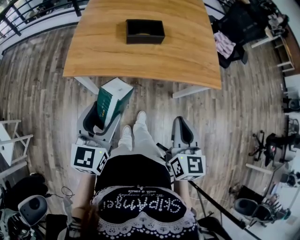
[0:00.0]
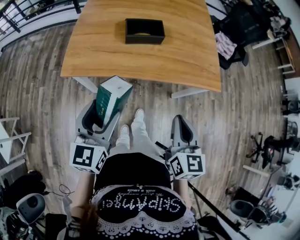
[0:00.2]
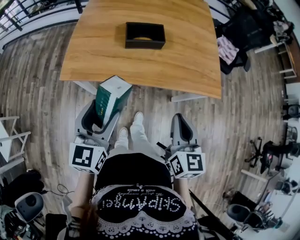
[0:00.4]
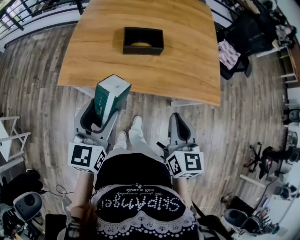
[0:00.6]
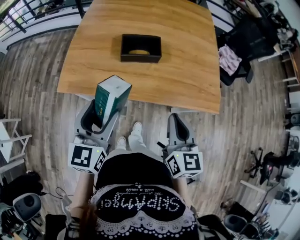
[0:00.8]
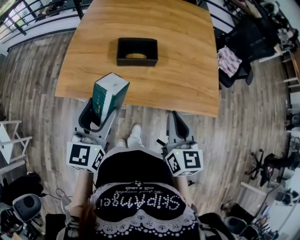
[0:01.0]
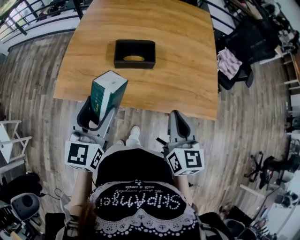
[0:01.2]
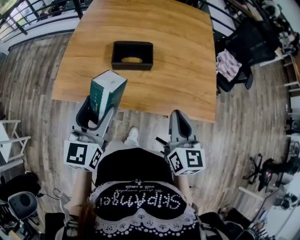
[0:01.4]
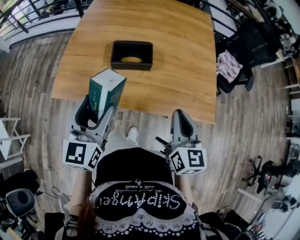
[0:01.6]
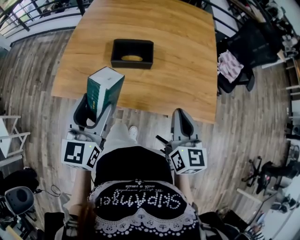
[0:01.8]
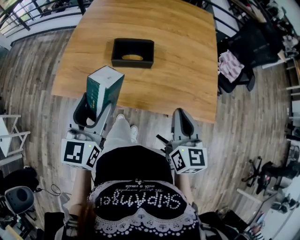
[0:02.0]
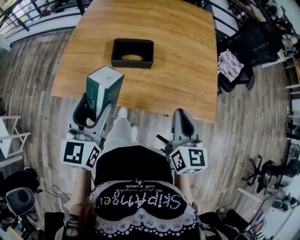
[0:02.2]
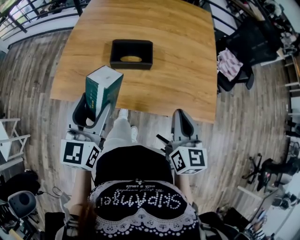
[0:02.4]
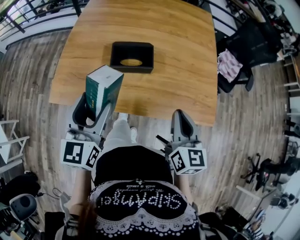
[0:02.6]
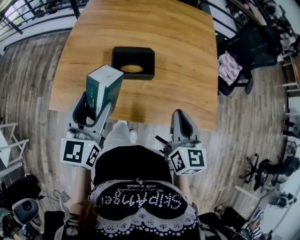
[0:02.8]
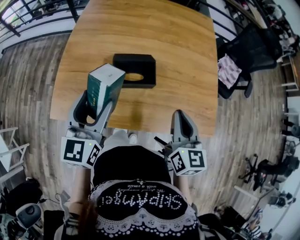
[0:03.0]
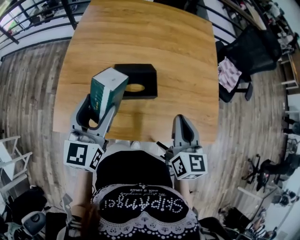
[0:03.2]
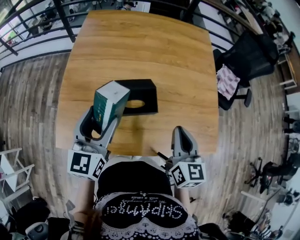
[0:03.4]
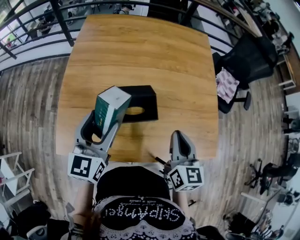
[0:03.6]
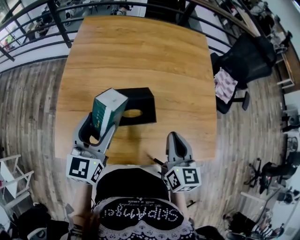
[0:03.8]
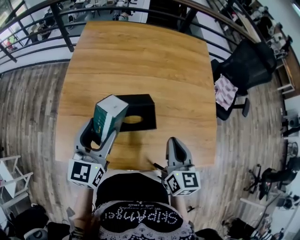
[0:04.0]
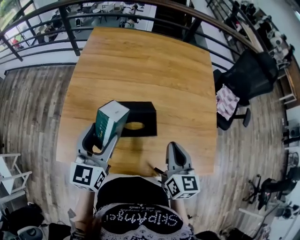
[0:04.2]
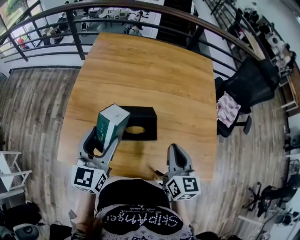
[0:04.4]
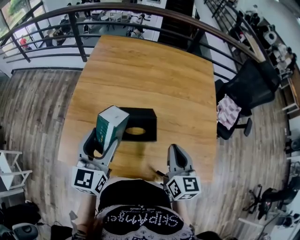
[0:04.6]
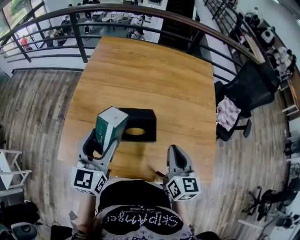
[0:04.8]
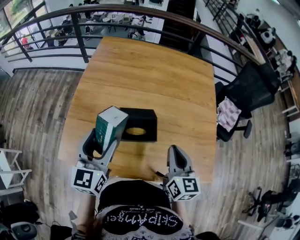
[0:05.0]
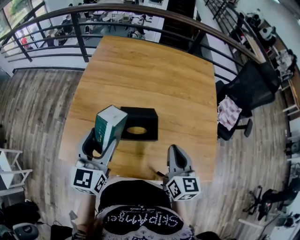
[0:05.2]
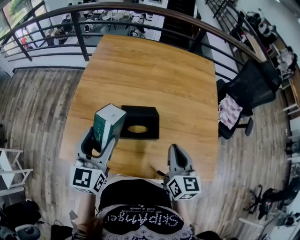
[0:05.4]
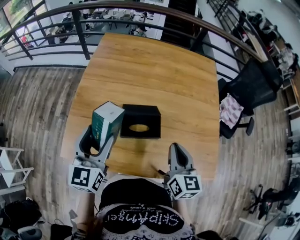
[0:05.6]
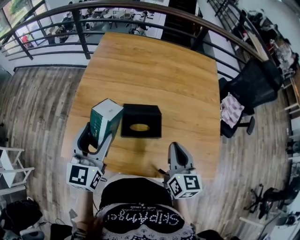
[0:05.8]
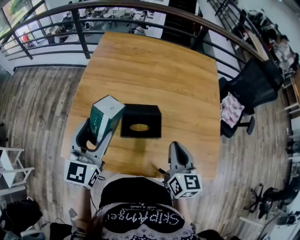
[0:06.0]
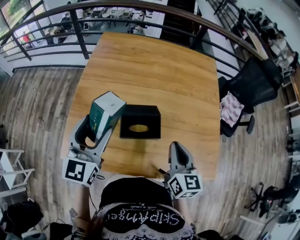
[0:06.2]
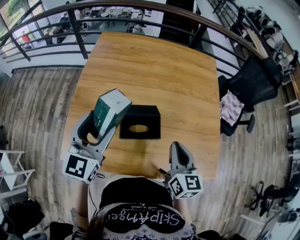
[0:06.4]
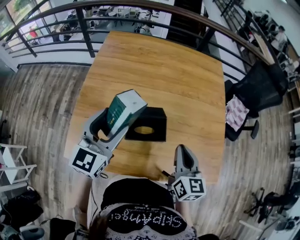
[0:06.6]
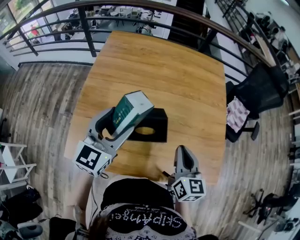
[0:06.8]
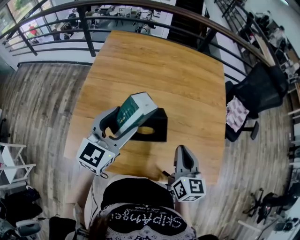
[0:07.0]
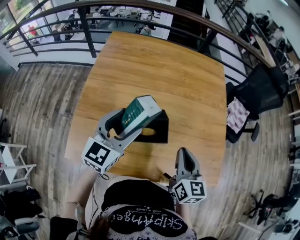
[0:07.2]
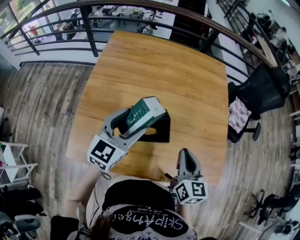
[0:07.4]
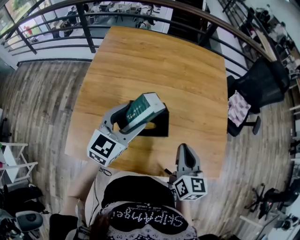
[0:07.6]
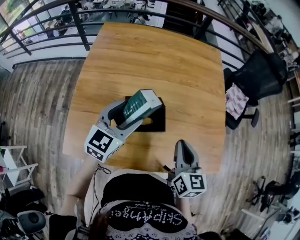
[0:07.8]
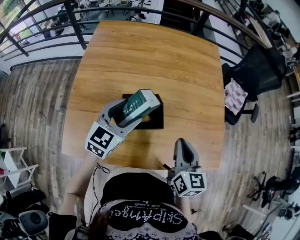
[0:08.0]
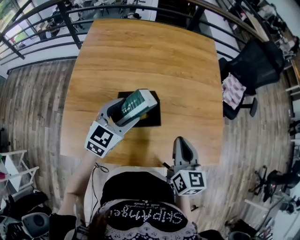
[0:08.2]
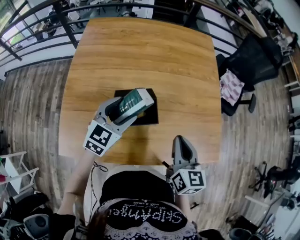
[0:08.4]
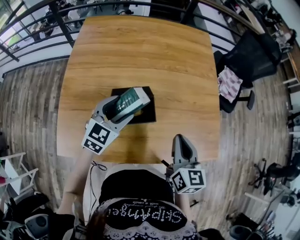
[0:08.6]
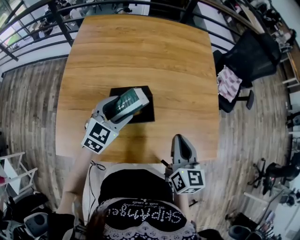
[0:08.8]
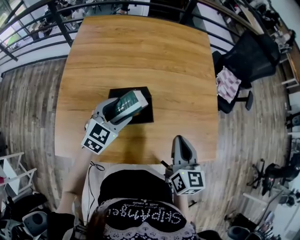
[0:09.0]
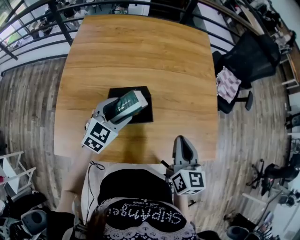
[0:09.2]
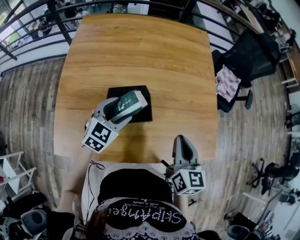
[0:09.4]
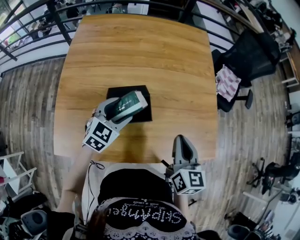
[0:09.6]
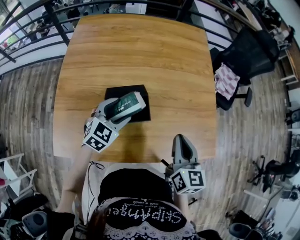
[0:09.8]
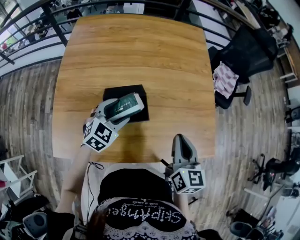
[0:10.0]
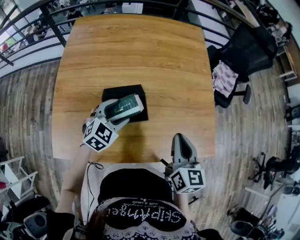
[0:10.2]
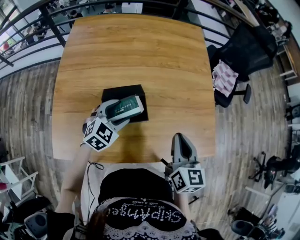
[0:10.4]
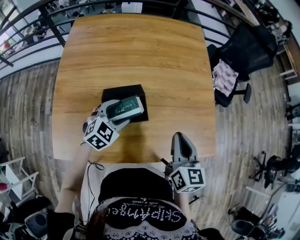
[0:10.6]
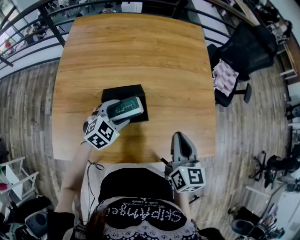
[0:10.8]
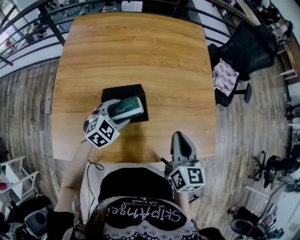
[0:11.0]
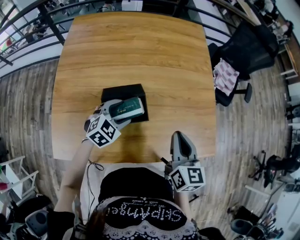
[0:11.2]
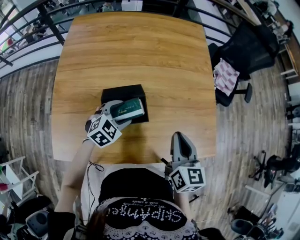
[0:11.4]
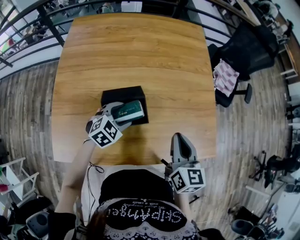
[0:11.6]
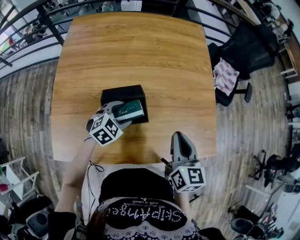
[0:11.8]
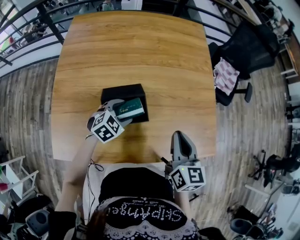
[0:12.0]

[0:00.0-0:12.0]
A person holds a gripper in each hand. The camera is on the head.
0:00.0 to 0:01.6: Both grippers travel together forward, approximately 20 cm.
0:01.6 to 0:03.0: Both grippers travel together forward, roughly 10 cm.
0:03.0 to 0:04.4: The grippers both shift forward by roughly 10 cm.
0:04.4 to 0:06.0: The grippers move only a little.
0:06.0 to 0:07.6: The left gripper is displaced to the right and forward by about 10 cm, and rotates some 20 degrees.
0:07.6 to 0:09.0: The left gripper heads downward, covering roughly 10 cm. Meanwhile the right gripper shifts by about 5 cm.
0:09.0 to 0:10.4: The left gripper ends up approximately 5 cm from where it was.
0:10.4 to 0:12.0: The left gripper moves downward, roughly 5 cm.

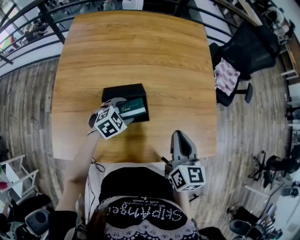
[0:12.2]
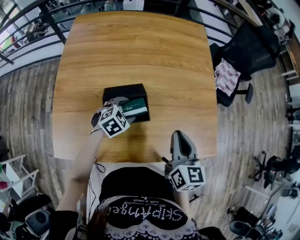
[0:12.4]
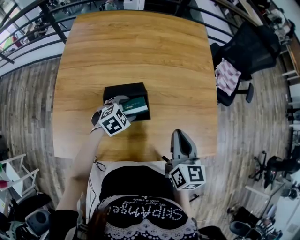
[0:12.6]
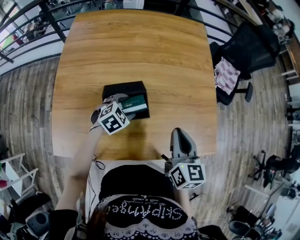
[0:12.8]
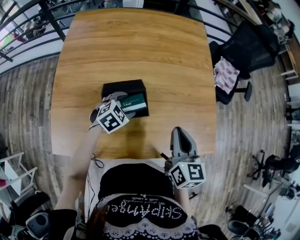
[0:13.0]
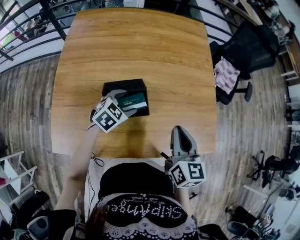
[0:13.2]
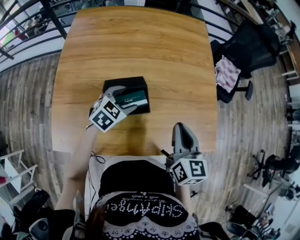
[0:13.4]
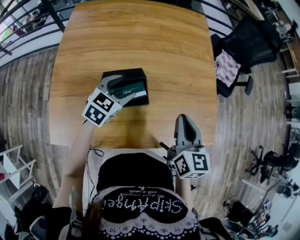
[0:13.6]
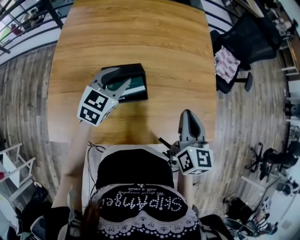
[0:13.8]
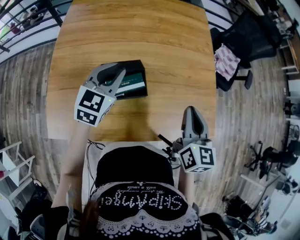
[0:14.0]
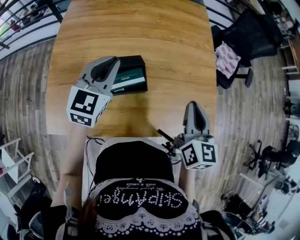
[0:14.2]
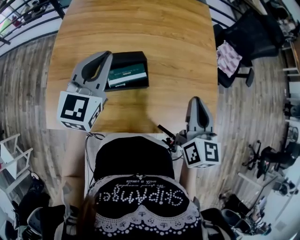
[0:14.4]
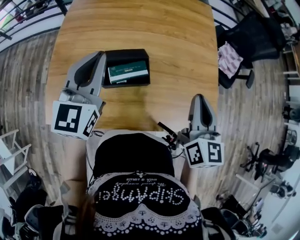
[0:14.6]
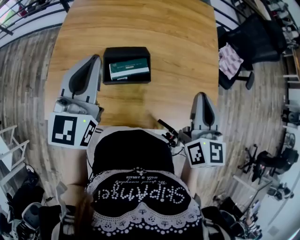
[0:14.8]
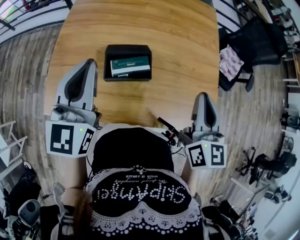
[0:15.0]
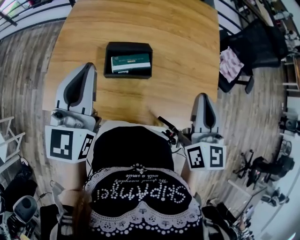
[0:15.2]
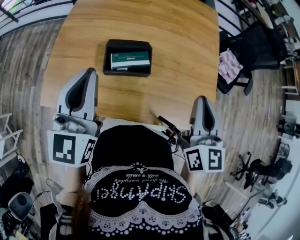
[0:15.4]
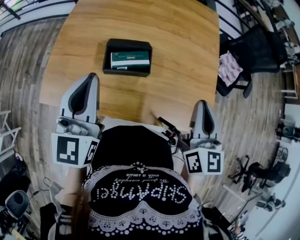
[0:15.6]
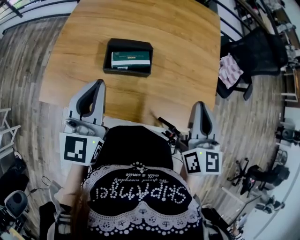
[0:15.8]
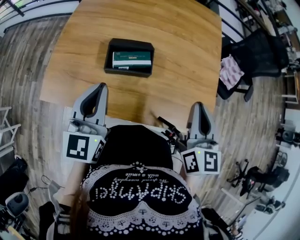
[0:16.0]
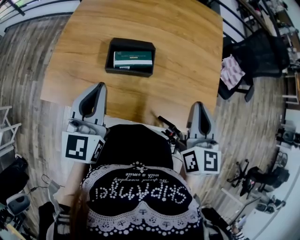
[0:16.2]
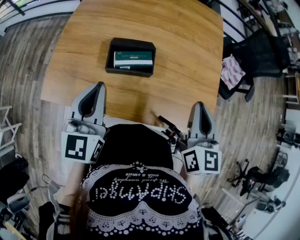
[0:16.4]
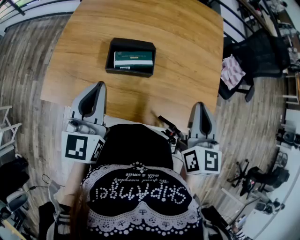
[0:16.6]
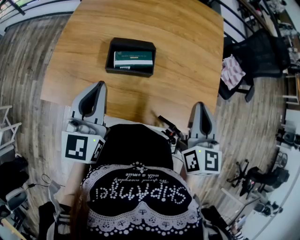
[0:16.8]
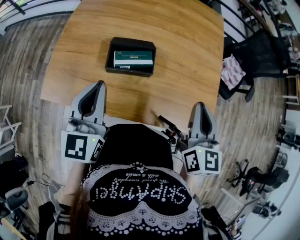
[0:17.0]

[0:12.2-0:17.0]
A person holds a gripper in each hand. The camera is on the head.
0:12.2 to 0:13.8: The left gripper is displaced upward by about 15 cm, changes its angle by some 30 degrees, and closes up.
0:13.8 to 0:15.4: The right gripper travels upward by roughly 10 cm, while the left gripper heads backward and upward, covering some 25 cm, rotates some 40 degrees, and closes.
0:15.4 to 0:17.0: The left gripper shifts approximately 5 cm downward.

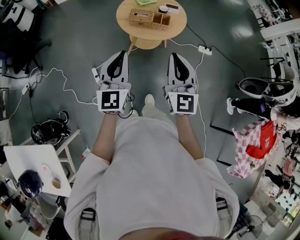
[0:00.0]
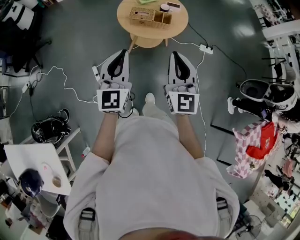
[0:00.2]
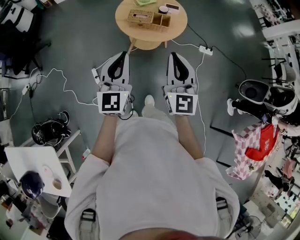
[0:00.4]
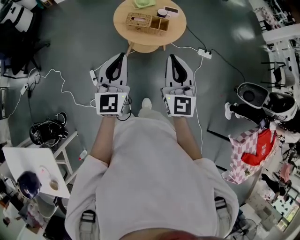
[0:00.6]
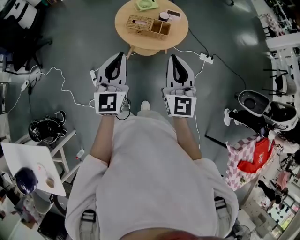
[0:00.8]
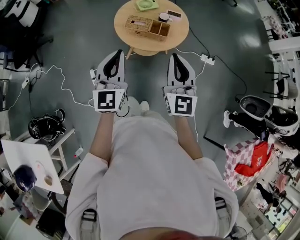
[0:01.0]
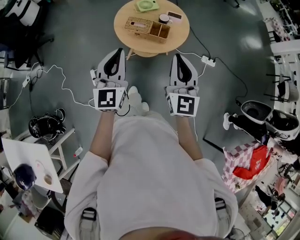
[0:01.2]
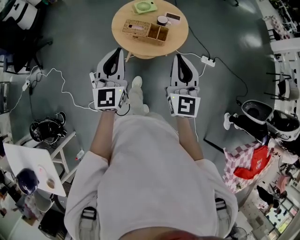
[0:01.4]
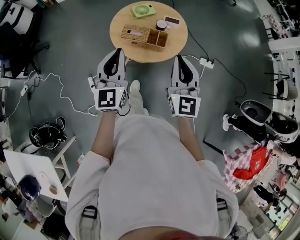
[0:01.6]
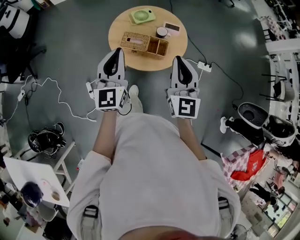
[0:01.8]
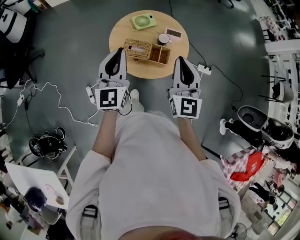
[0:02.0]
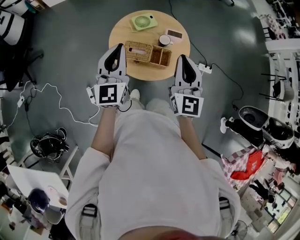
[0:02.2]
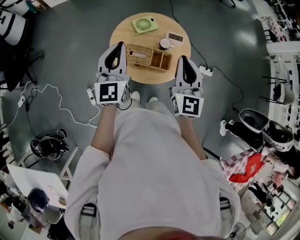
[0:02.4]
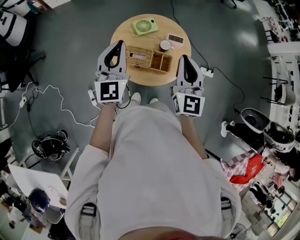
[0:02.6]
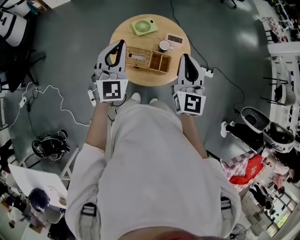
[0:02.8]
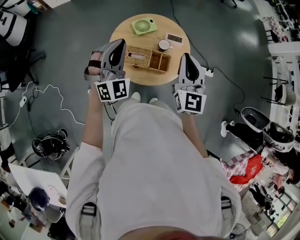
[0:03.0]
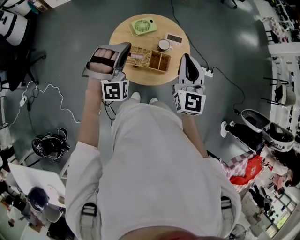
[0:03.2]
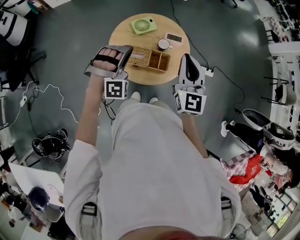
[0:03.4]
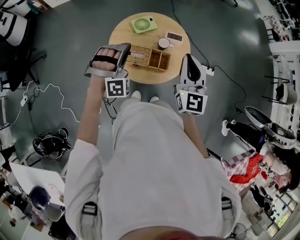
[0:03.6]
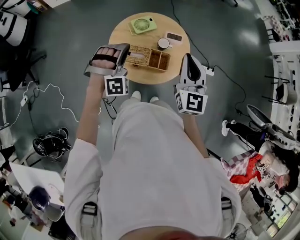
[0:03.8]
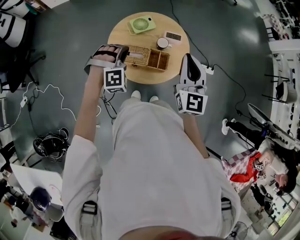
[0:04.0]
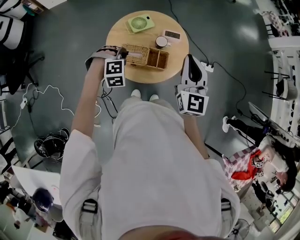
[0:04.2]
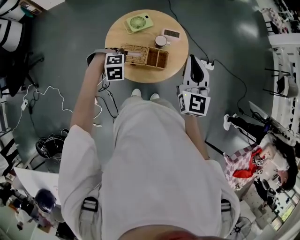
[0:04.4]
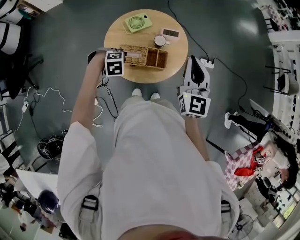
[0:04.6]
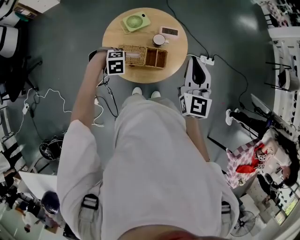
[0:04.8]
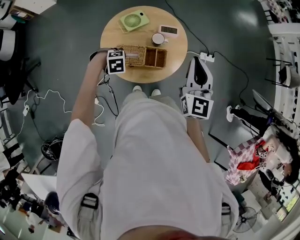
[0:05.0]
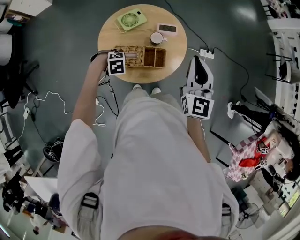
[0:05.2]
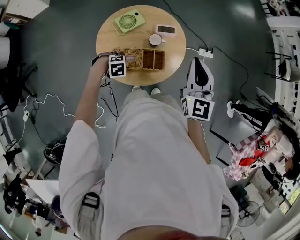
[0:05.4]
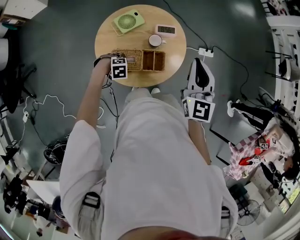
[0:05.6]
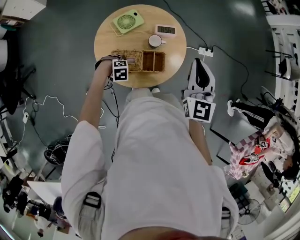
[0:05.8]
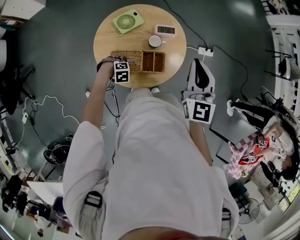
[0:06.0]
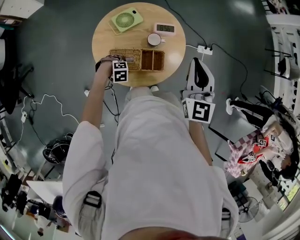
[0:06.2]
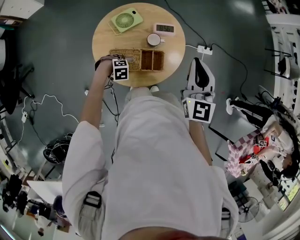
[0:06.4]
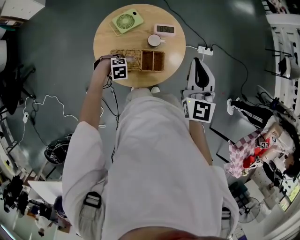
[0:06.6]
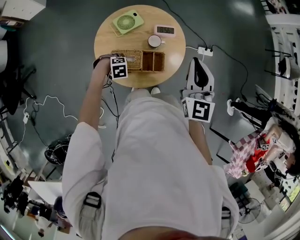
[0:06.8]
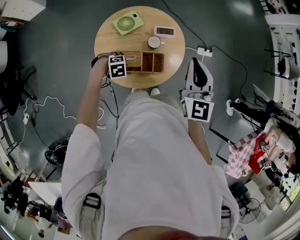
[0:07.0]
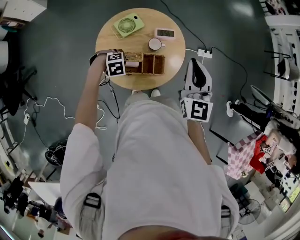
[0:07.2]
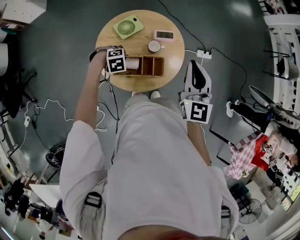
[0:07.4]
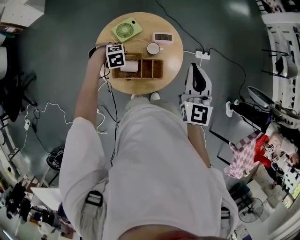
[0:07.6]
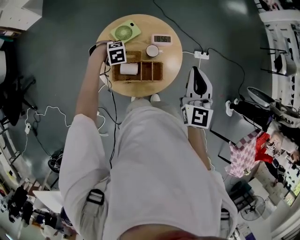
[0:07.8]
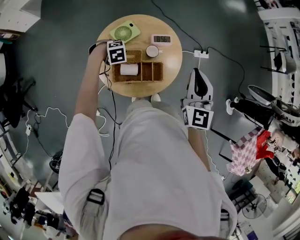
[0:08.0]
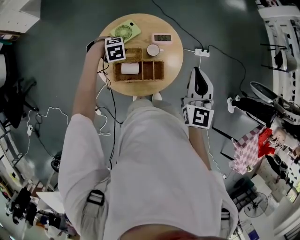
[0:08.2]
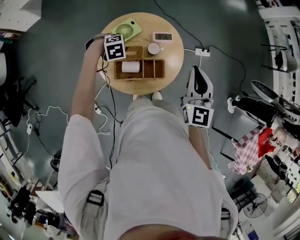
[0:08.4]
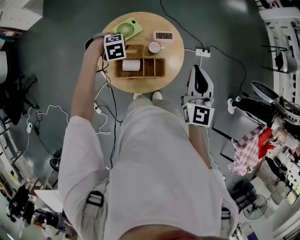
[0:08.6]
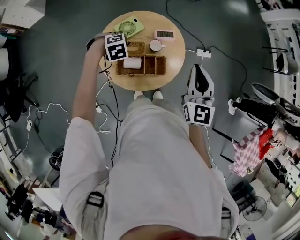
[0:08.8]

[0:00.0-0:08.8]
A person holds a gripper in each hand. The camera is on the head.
0:00.0 to 0:01.4: The right gripper travels forward and to the right by some 20 cm; the left gripper goes approximately 15 cm forward.
0:01.4 to 0:03.0: Both grippers move forward, roughly 25 cm. The left gripper rotates around the line of its fingers by about 50 degrees, clockwise from behind.
0:03.0 to 0:04.4: The left gripper travels downward by some 20 cm, and tips its fingers downward by roughly 70 degrees.
0:04.4 to 0:05.8: The right gripper changes place by approximately 10 cm, while the left gripper goes approximately 20 cm downward, and opens.
0:05.8 to 0:07.4: The left gripper moves upward, some 10 cm, and closes its fingers.
0:07.4 to 0:08.8: The left gripper moves upward, roughly 5 cm.
